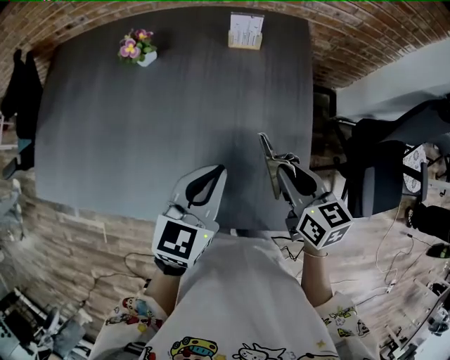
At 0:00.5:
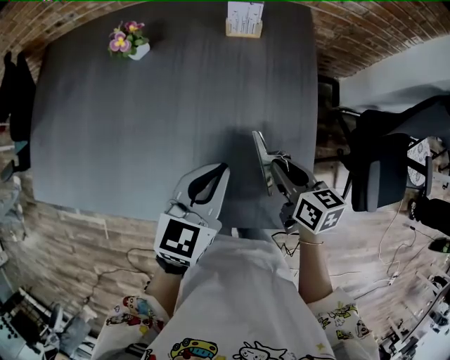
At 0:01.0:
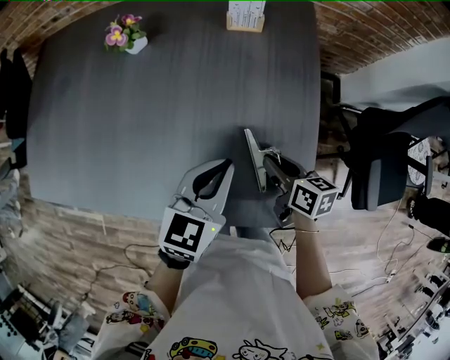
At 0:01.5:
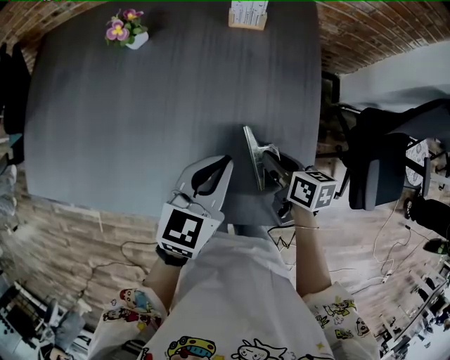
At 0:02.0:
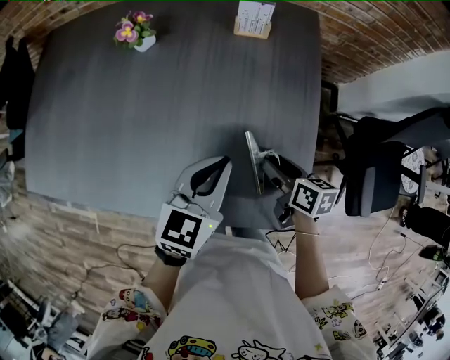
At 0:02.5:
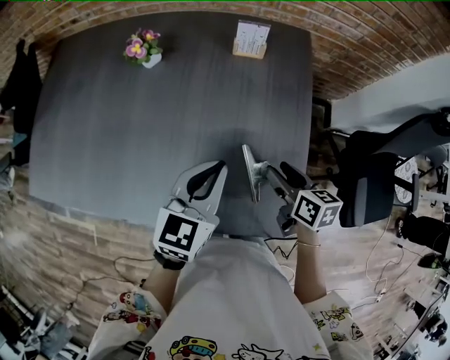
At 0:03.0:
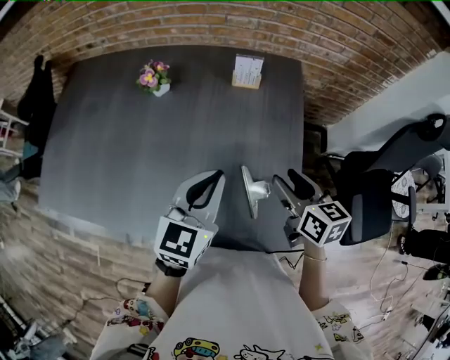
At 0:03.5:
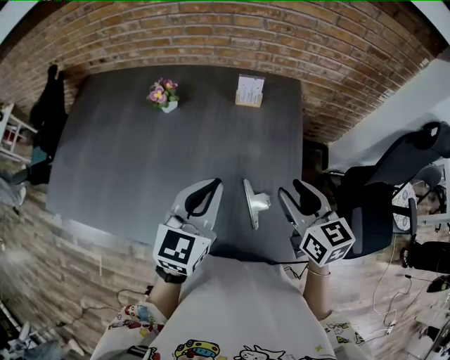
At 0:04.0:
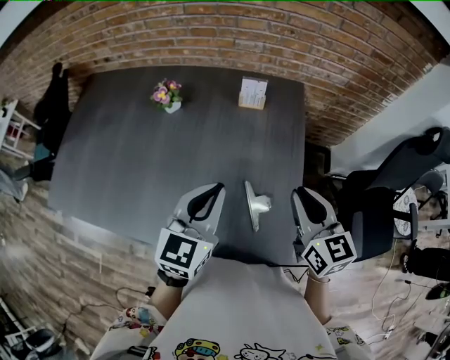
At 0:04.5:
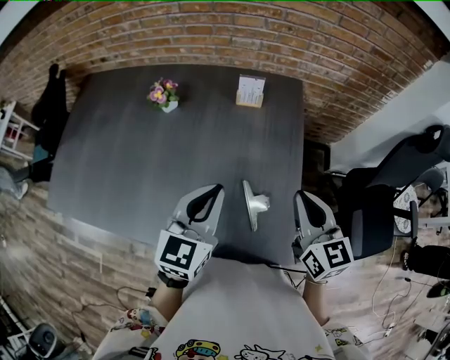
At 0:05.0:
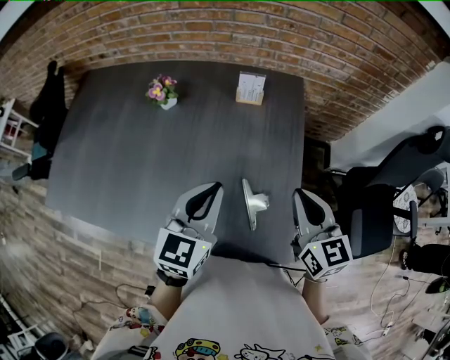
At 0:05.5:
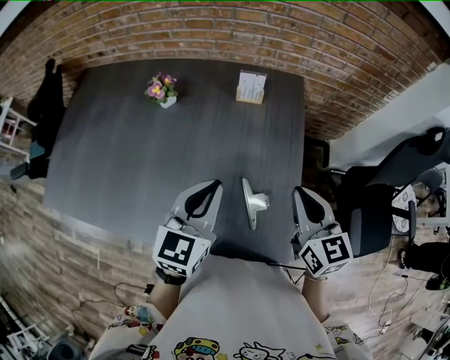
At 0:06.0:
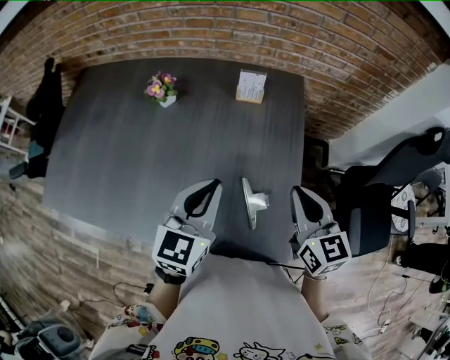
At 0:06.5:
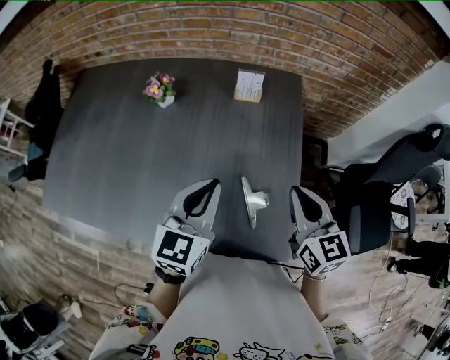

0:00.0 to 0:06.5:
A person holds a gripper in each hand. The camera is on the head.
0:00.0 to 0:02.0: The right gripper moves downward, some 10 cm, swivels some 20 degrees, and opens its fingers.
0:02.0 to 0:04.5: The left gripper shifts approximately 10 cm upward, while the right gripper heads upward, covering approximately 20 cm, turns by about 50 degrees, and closes up.
0:04.5 to 0:06.5: The grippers make only small movements.

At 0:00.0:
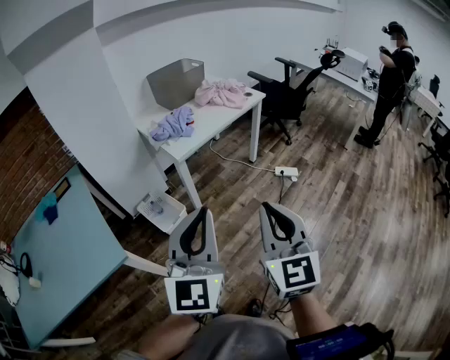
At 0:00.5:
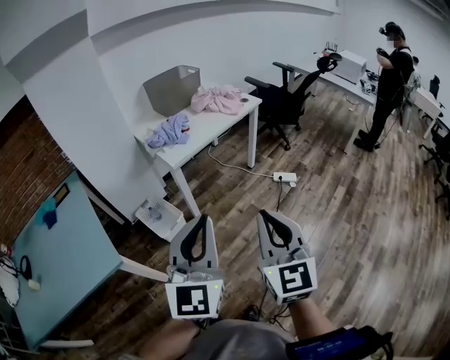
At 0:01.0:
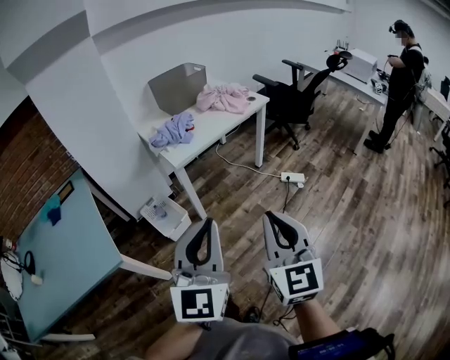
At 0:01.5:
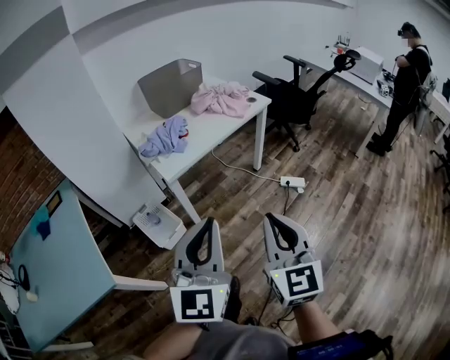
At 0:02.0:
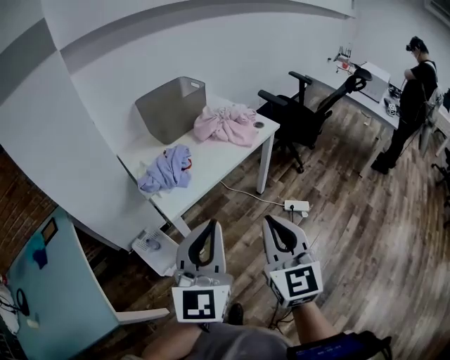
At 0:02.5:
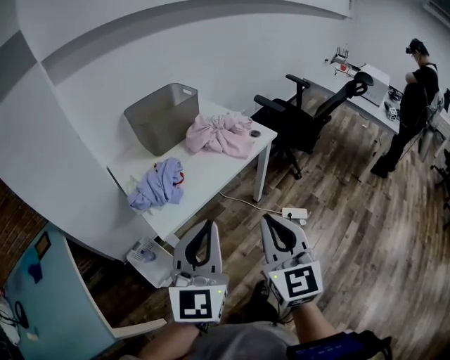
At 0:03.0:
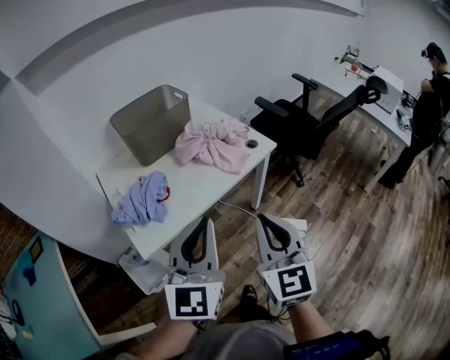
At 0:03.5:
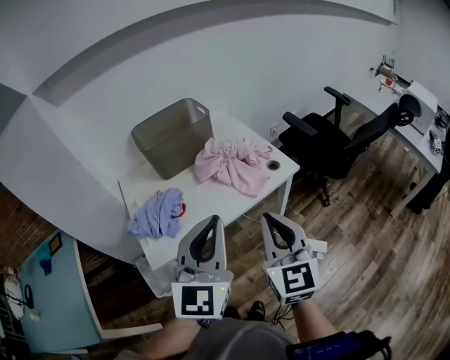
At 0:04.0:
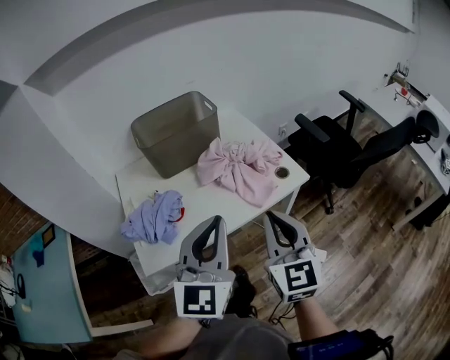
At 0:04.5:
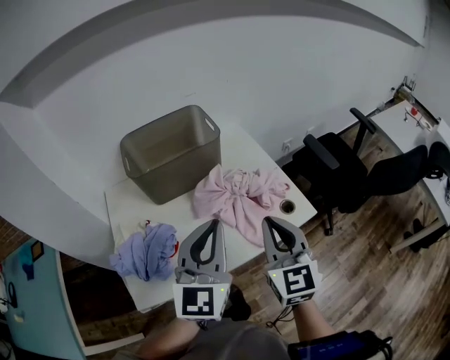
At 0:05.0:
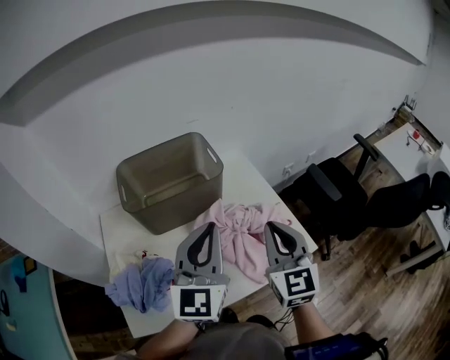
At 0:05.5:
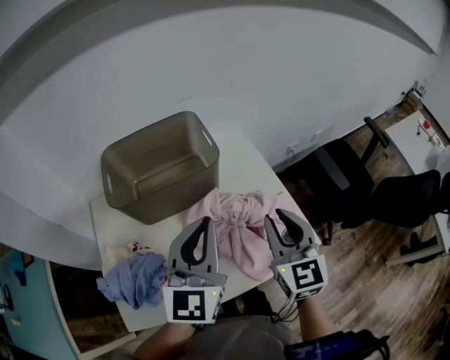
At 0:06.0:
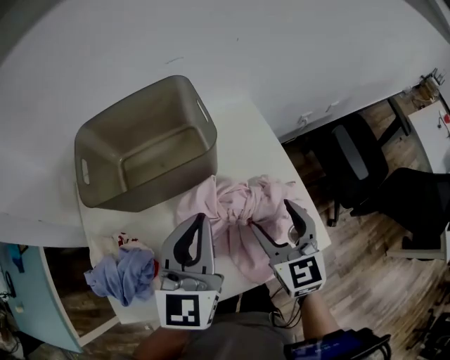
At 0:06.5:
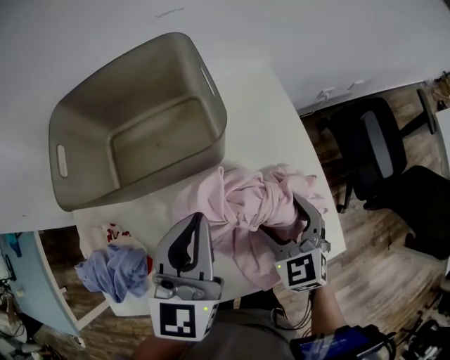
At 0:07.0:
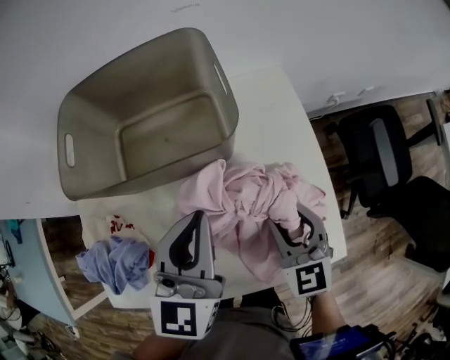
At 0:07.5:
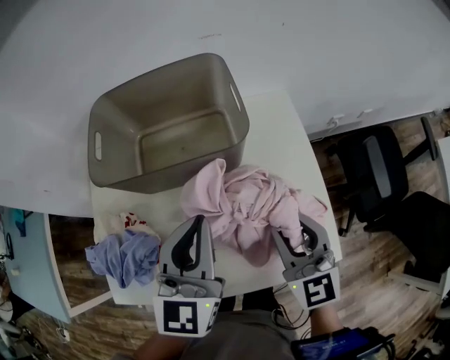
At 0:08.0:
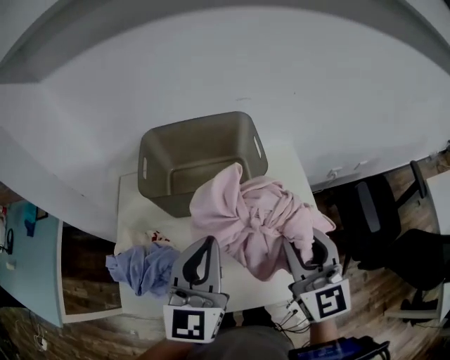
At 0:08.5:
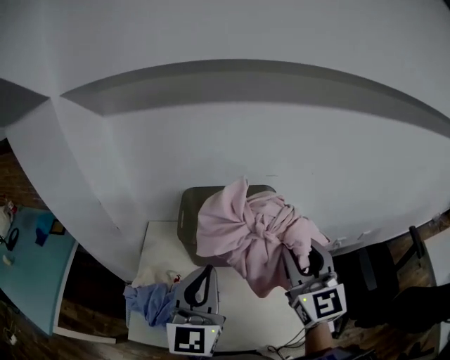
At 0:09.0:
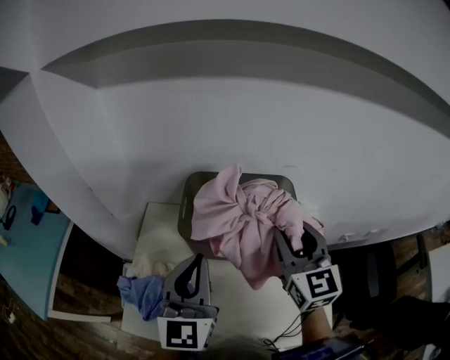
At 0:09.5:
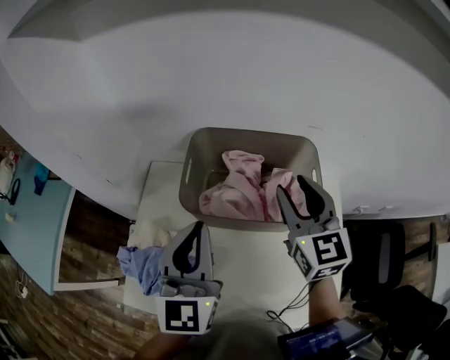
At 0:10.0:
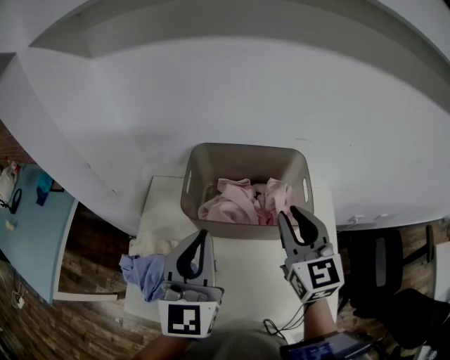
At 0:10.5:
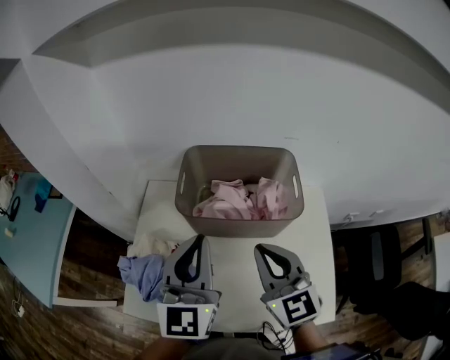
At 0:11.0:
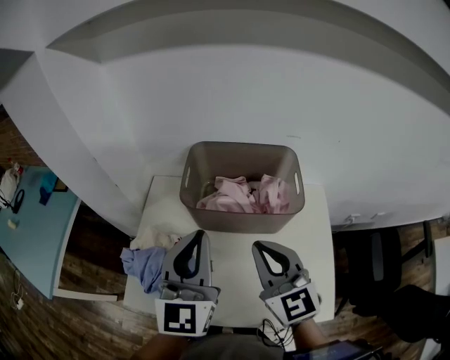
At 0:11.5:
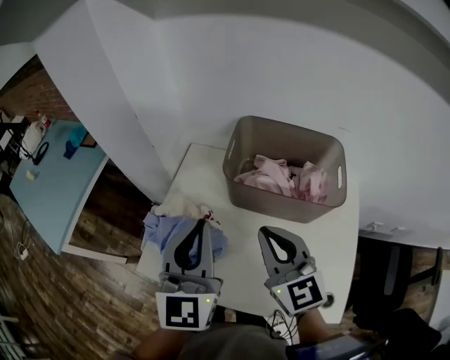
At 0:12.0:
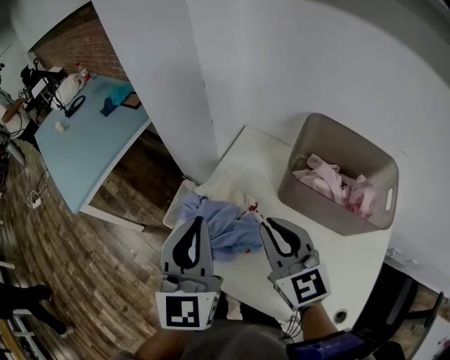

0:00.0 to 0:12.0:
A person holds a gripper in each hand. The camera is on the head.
0:00.0 to 0:02.0: Both grippers move forward, about 30 cm.
0:02.0 to 0:04.0: Both grippers travel together forward, about 35 cm.
0:04.0 to 0:06.0: The left gripper goes some 35 cm forward. The right gripper is displaced forward and downward by approximately 40 cm, rotates about 20 degrees, and opens up.
0:06.0 to 0:08.0: The left gripper goes about 10 cm to the left and upward, while the right gripper heads upward, covering roughly 15 cm, changes its angle by approximately 20 degrees, and closes.
0:08.0 to 0:10.0: The left gripper travels to the left and forward by roughly 15 cm. Meanwhile the right gripper travels forward and to the left by some 20 cm.
0:10.0 to 0:12.0: The right gripper moves about 30 cm, and rotates roughly 40 degrees, while the left gripper ends up about 20 cm from where it was, and changes its angle by approximately 30 degrees.

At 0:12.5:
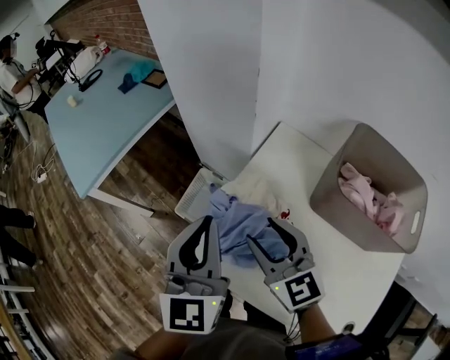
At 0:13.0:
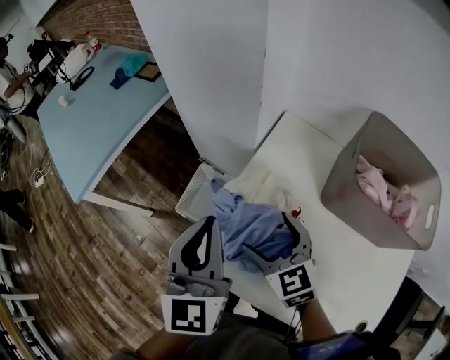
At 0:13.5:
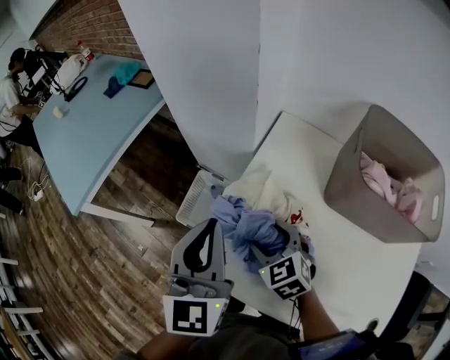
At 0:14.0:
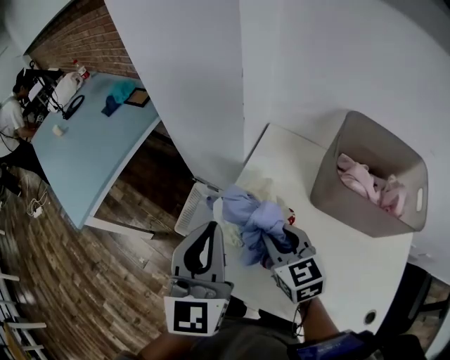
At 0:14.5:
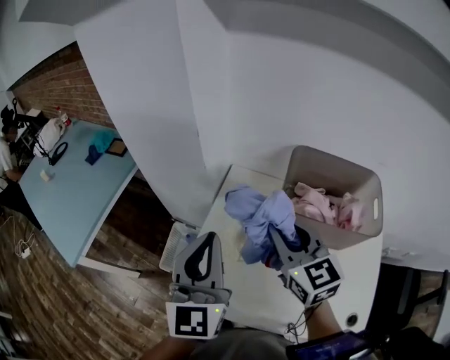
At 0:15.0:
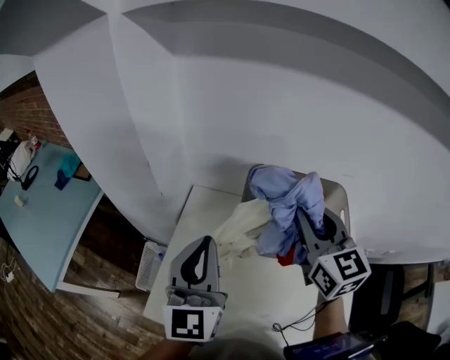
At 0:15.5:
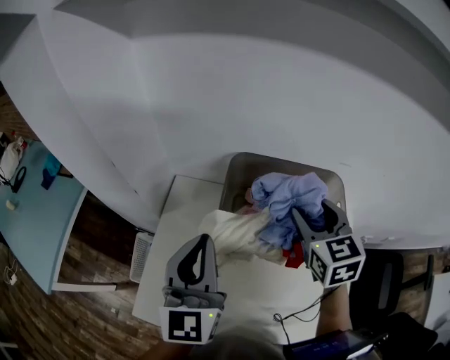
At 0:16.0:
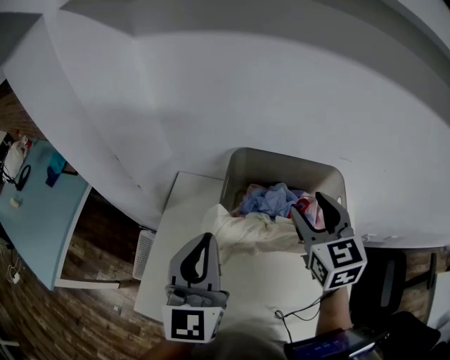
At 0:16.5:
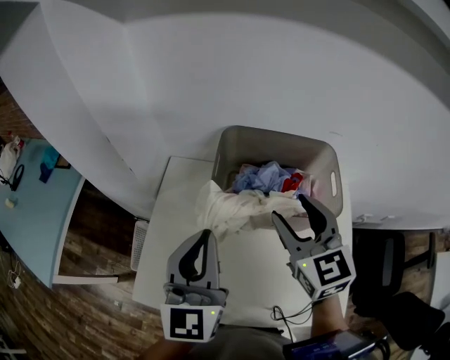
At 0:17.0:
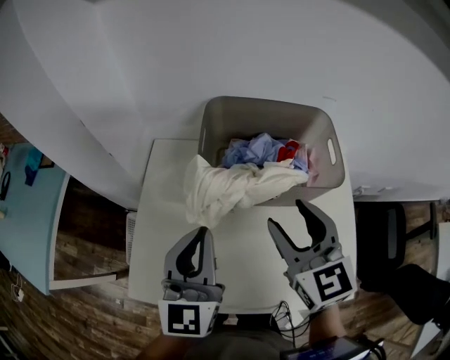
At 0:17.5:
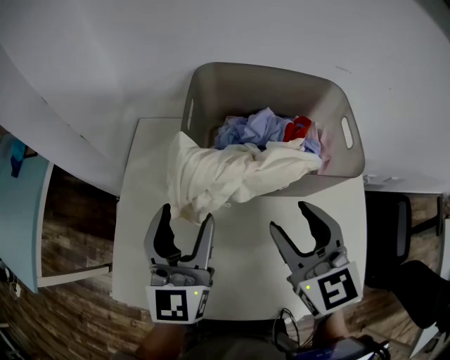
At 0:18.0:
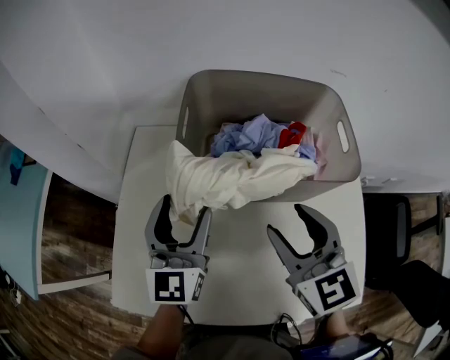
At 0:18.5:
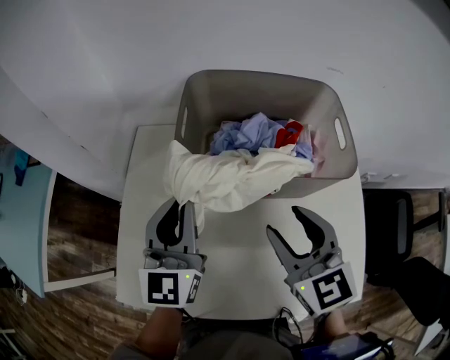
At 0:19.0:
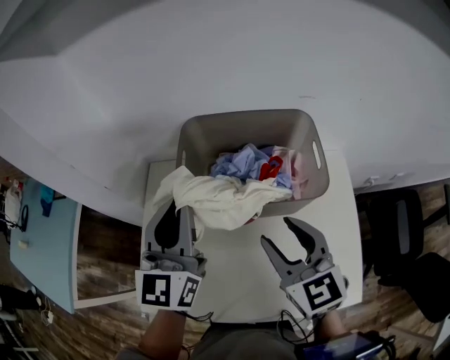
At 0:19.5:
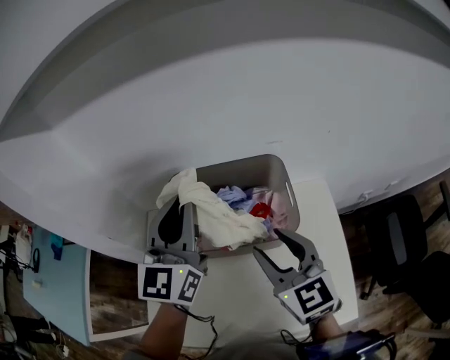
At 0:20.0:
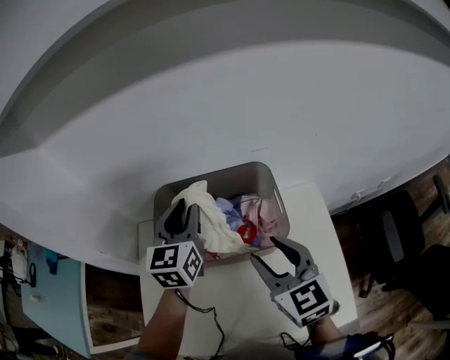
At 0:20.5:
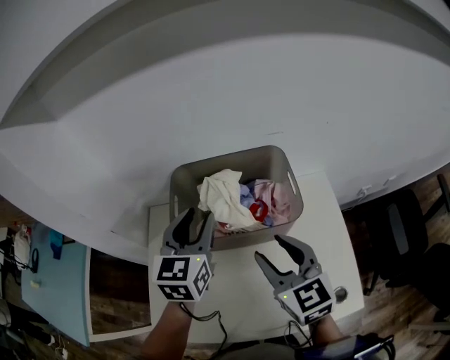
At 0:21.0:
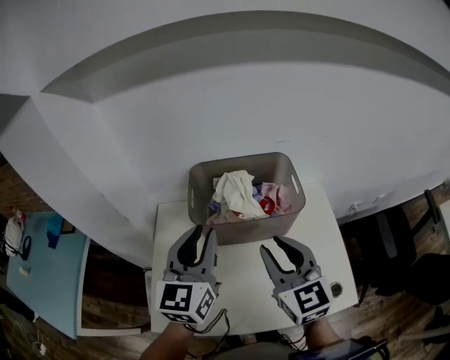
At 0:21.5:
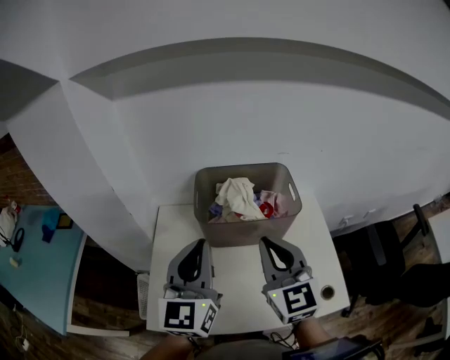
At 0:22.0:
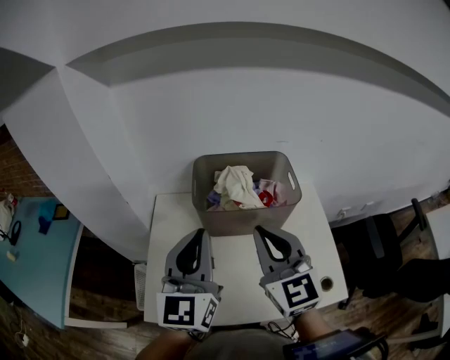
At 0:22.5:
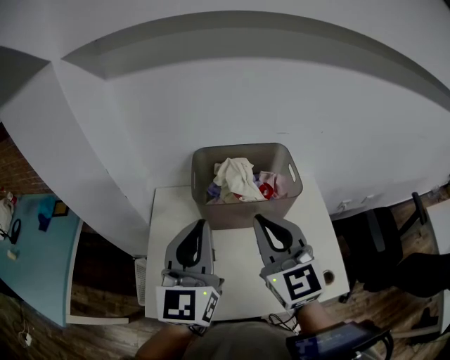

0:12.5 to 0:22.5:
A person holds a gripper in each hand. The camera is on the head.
0:12.5 to 0:14.5: The right gripper is displaced to the right and upward by some 15 cm, turns by some 20 degrees, and opens, then closes once more. Meanwhile the left gripper goes some 10 cm to the right and upward.
0:14.5 to 0:16.5: Both grippers move to the right, roughly 20 cm. The right gripper opens up.
0:16.5 to 0:18.5: The right gripper shifts roughly 15 cm downward and backward. The left gripper travels downward and forward by about 15 cm, and opens and closes again.
0:18.5 to 0:20.5: The right gripper goes roughly 10 cm upward; the left gripper moves to the right, upward and forward, approximately 15 cm, and opens.
0:20.5 to 0:22.5: The right gripper travels upward, to the left and backward by some 15 cm, turns by some 20 degrees, and closes; the left gripper shifts approximately 20 cm backward, upward and to the left, swivels roughly 20 degrees, and closes up.
